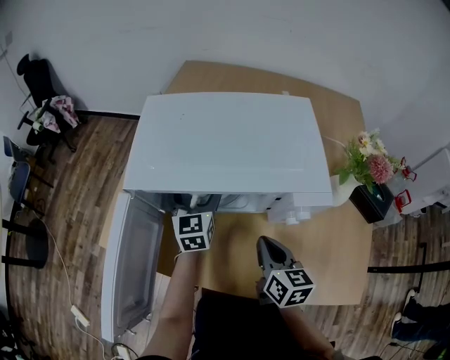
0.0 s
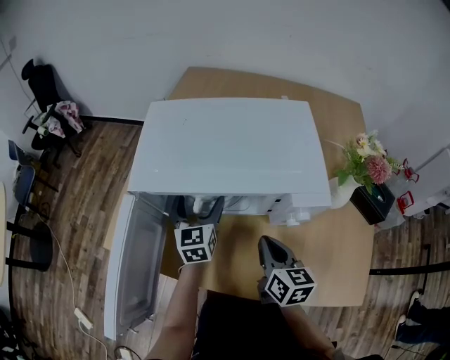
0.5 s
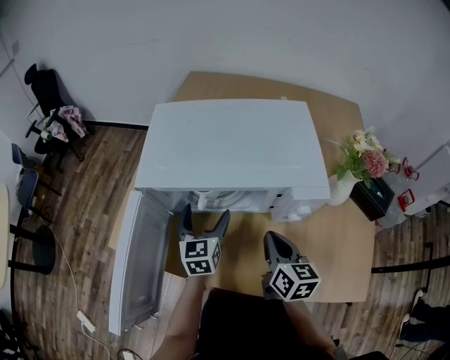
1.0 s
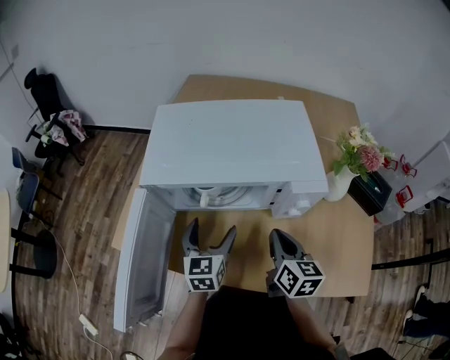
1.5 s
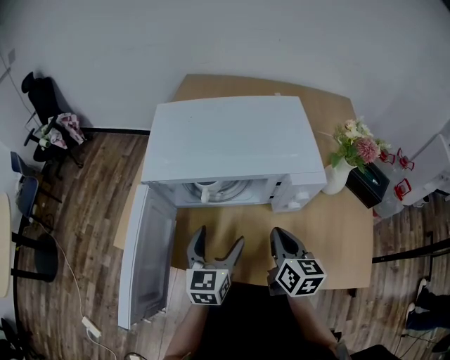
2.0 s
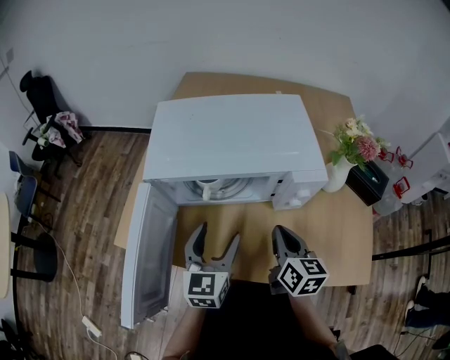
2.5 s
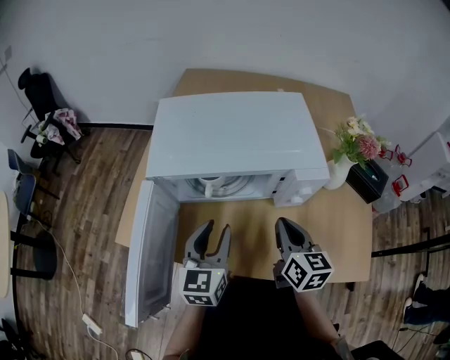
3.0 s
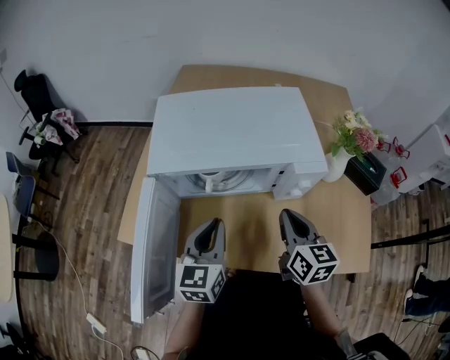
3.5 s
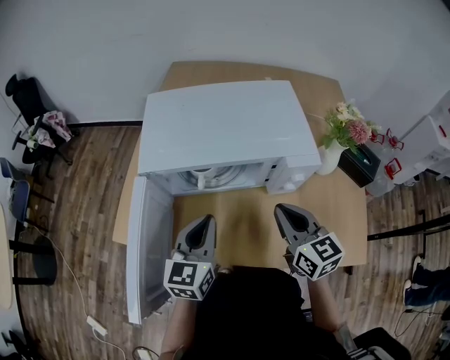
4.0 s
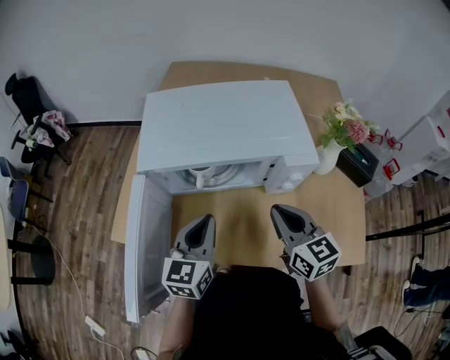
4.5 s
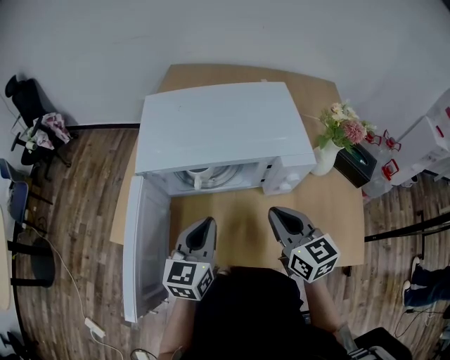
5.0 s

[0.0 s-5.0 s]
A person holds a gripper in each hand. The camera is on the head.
0.0 to 2.5 s: The right gripper moves about 5 cm; the left gripper heads backward, covering some 20 cm.
2.5 to 5.0 s: The left gripper closes; the right gripper moves upward, some 5 cm, and changes its angle by approximately 20 degrees.

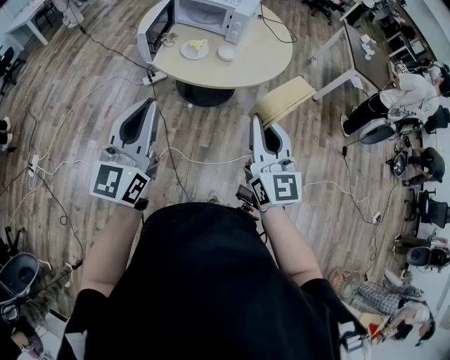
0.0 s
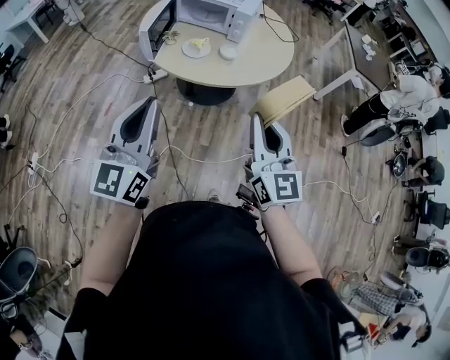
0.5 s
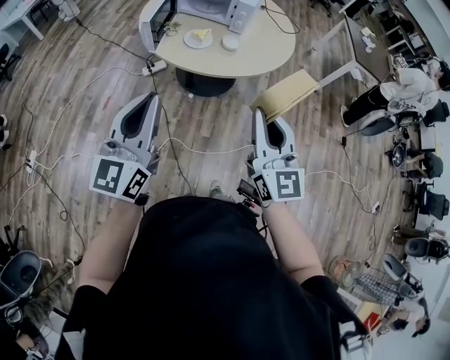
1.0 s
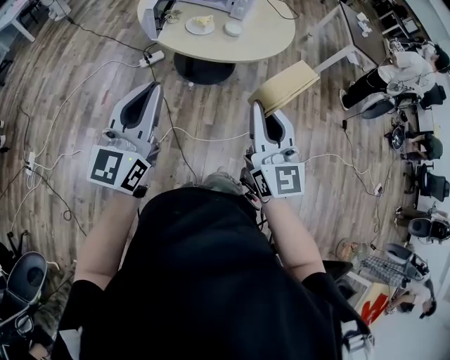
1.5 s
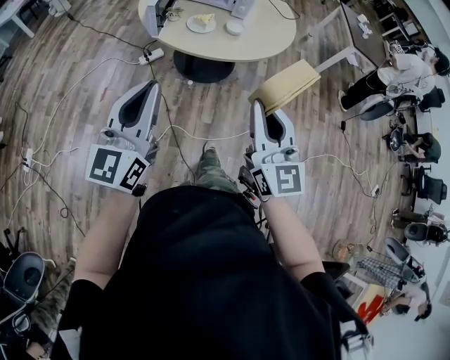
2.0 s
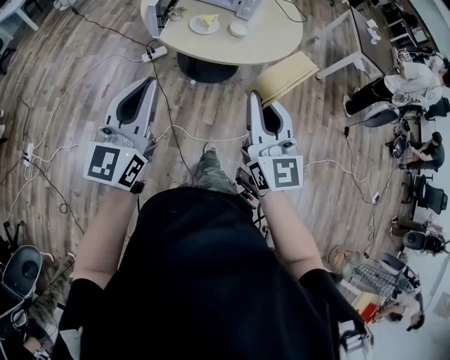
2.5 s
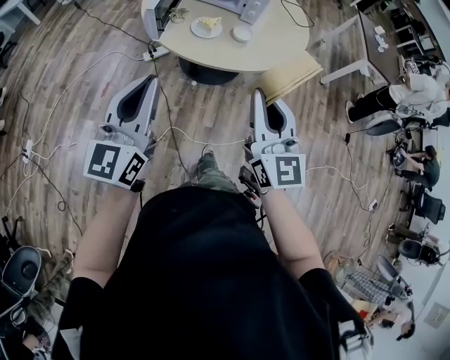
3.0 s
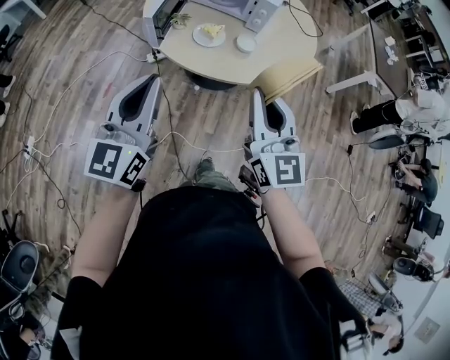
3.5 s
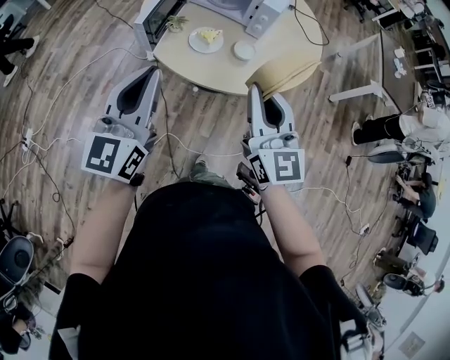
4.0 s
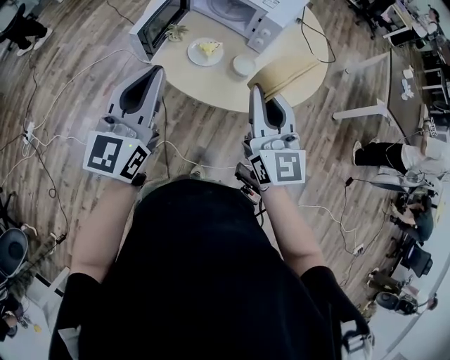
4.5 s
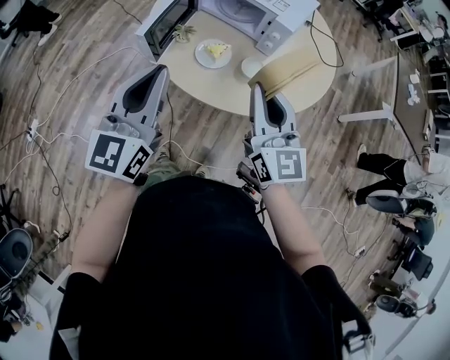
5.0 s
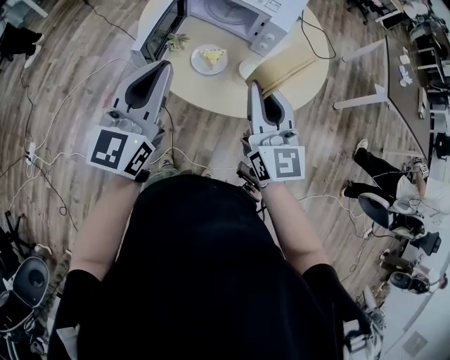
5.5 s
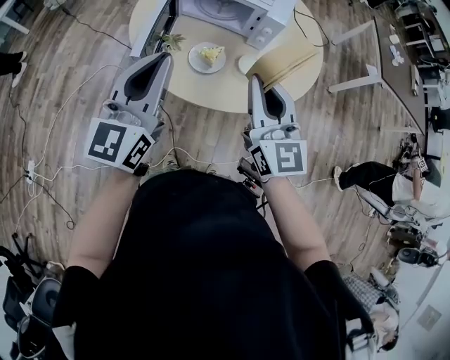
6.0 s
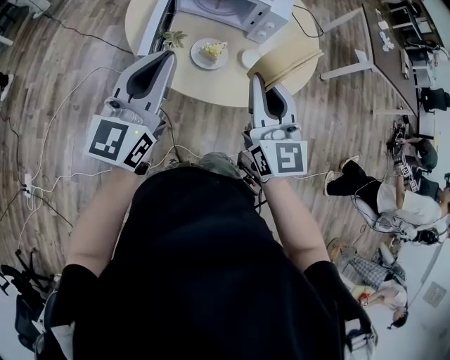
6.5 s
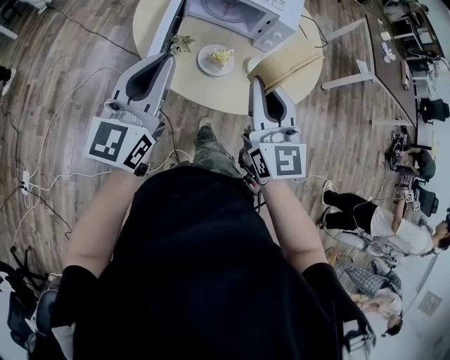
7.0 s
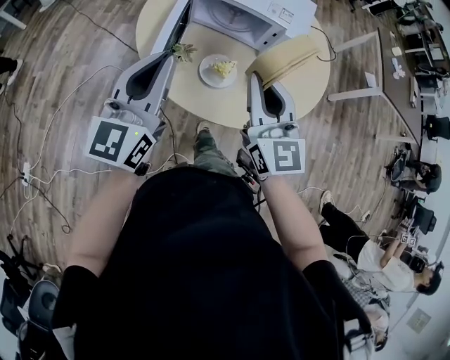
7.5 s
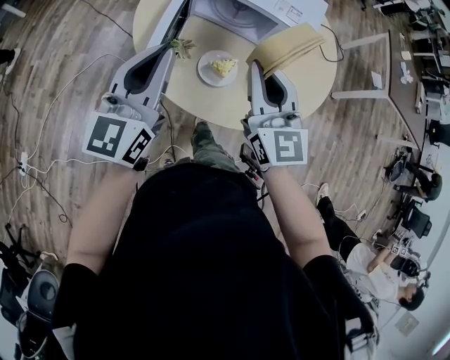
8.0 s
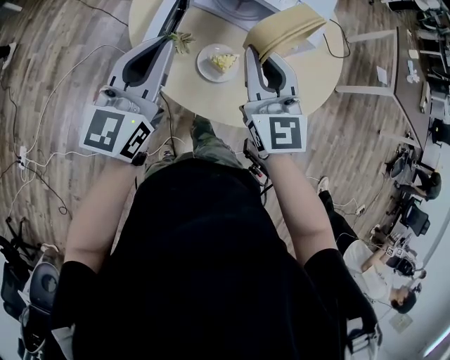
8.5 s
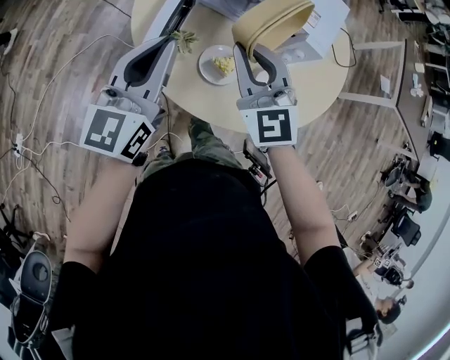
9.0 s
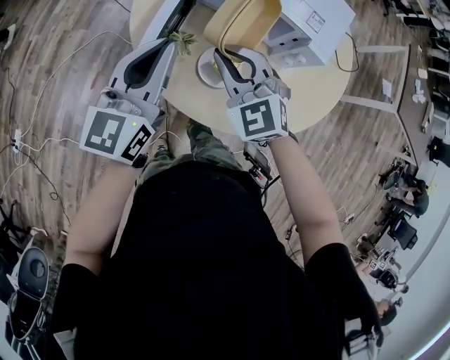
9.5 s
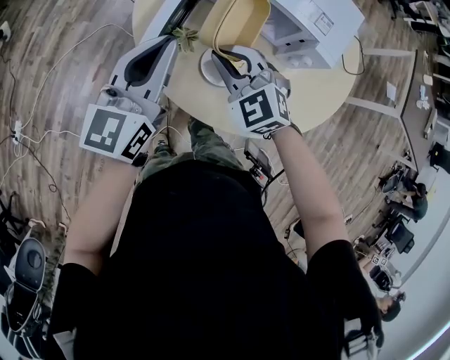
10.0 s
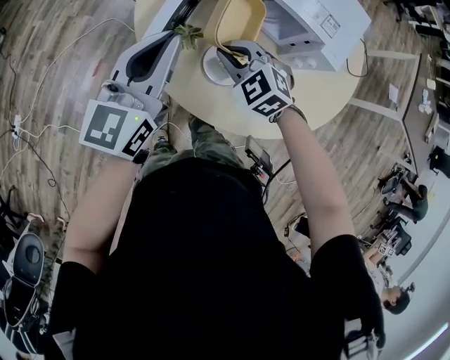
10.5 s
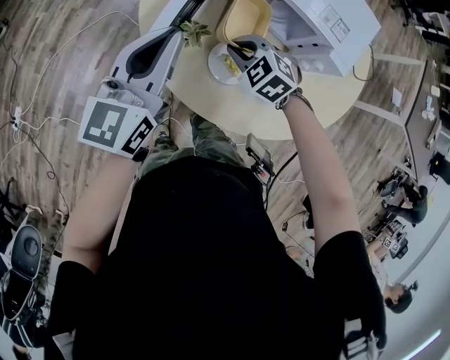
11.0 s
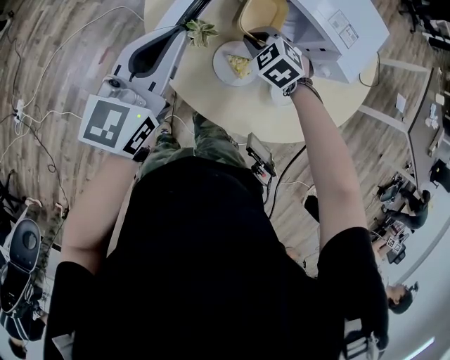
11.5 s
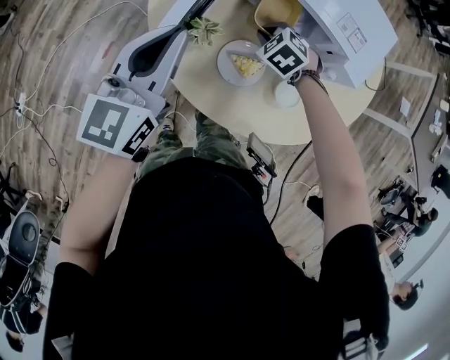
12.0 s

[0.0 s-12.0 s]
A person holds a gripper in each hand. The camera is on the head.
0.0 to 2.0 s: The right gripper shifts roughly 10 cm to the left and backward; the left gripper moves to the left, about 5 cm.
2.0 to 4.0 s: Both grippers move forward, roughly 25 cm.
4.0 to 6.0 s: The left gripper heads forward, covering approximately 15 cm, while the right gripper heads forward and to the left, covering roughly 15 cm.
6.0 to 8.0 s: The grippers both shift forward and to the left by about 15 cm.
8.0 to 10.0 s: The left gripper moves forward and downward, about 10 cm. Meanwhile the right gripper goes approximately 20 cm downward, forward and to the left, and turns by roughly 50 degrees.
10.0 to 12.0 s: The right gripper goes about 20 cm downward, forward and to the right, and angles its fingers downward, by approximately 40 degrees.

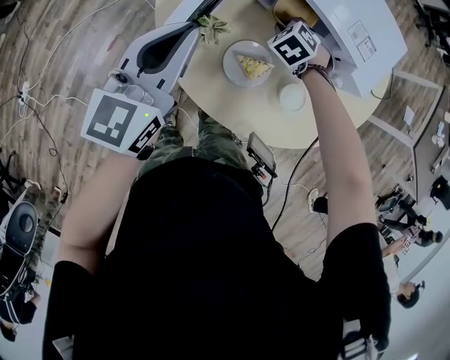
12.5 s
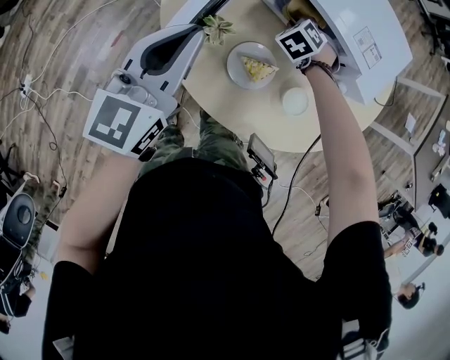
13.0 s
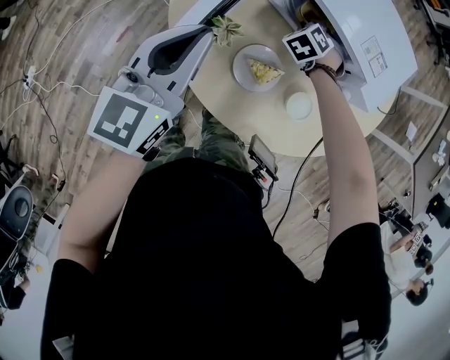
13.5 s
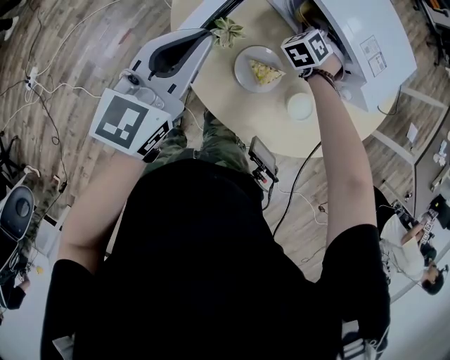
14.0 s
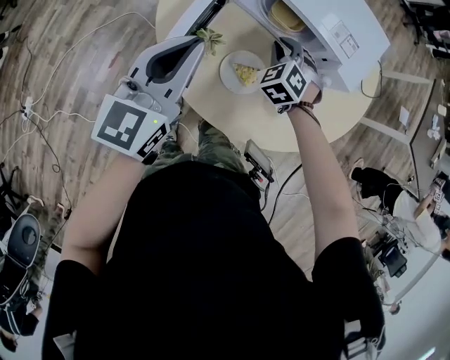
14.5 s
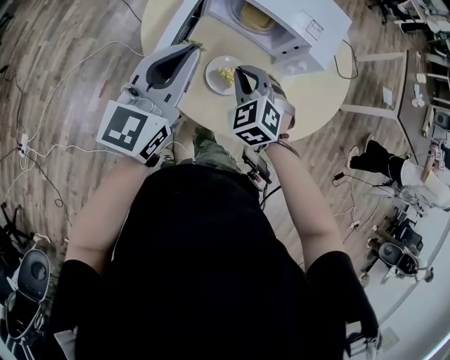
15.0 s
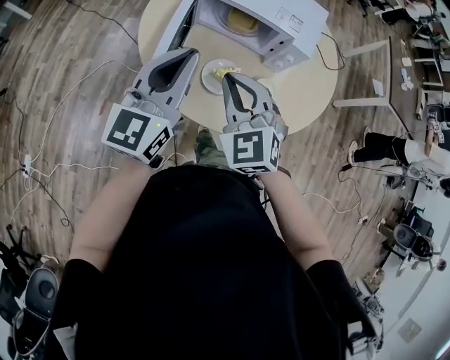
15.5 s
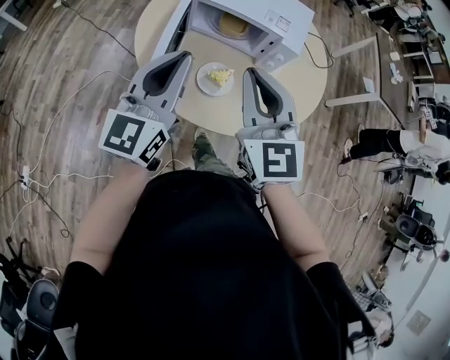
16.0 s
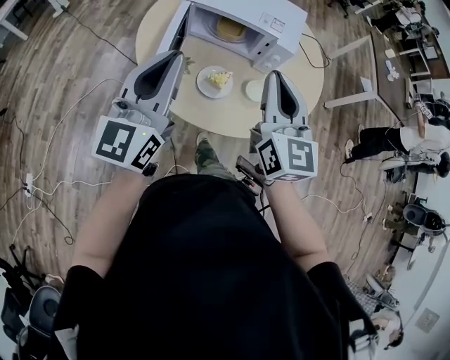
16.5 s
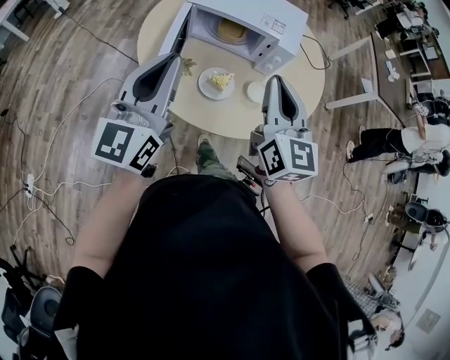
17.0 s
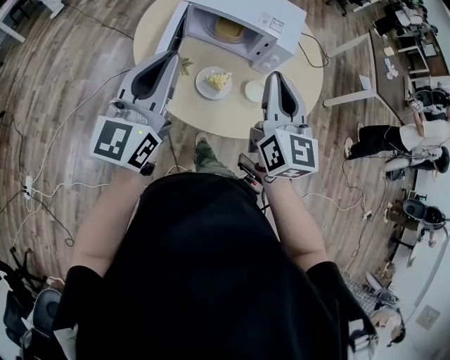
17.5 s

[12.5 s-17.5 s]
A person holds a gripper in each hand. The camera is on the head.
12.5 to 15.0 s: The right gripper heads backward and upward, covering about 25 cm, and rotates about 20 degrees; the left gripper shifts roughly 5 cm upward.
15.0 to 17.5 s: The left gripper heads backward and upward, covering about 10 cm. Meanwhile the right gripper travels upward by about 20 cm, and points its fingers about 40 degrees further upward.

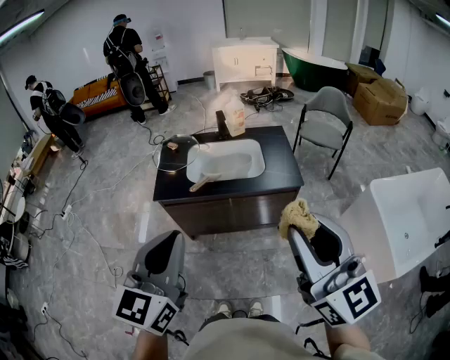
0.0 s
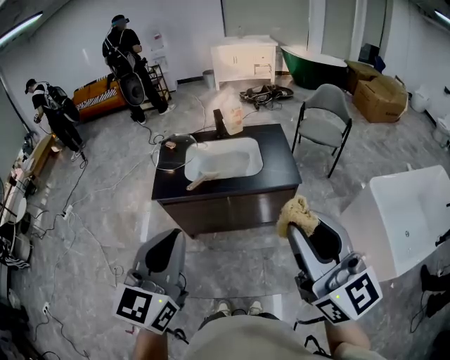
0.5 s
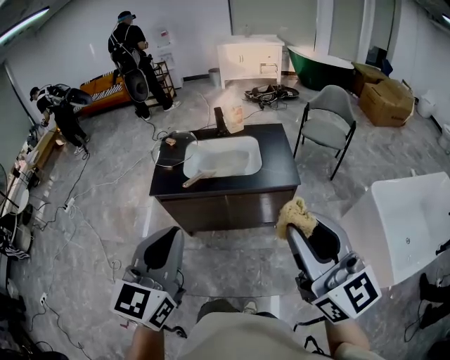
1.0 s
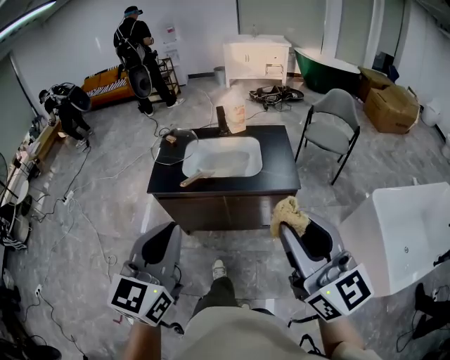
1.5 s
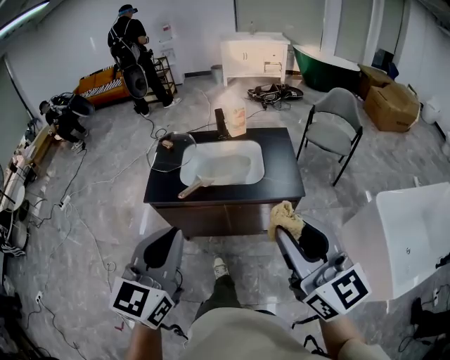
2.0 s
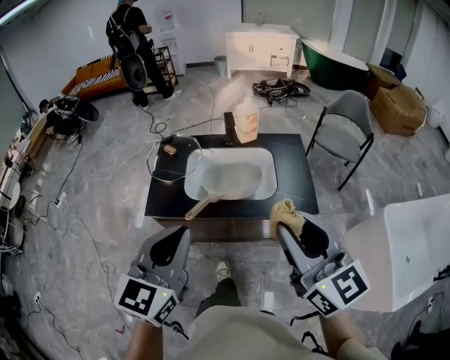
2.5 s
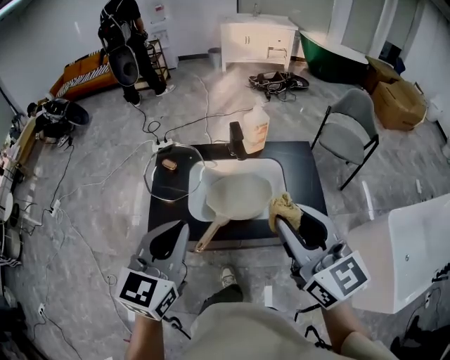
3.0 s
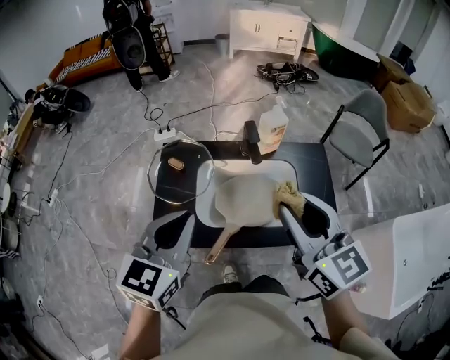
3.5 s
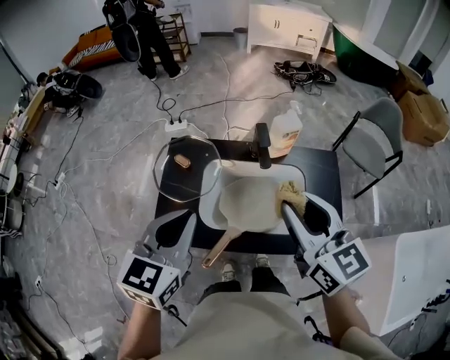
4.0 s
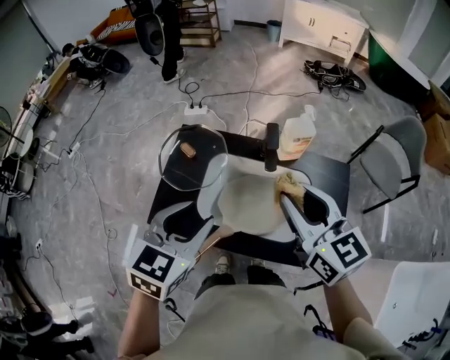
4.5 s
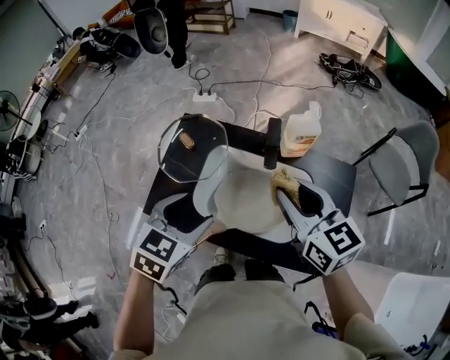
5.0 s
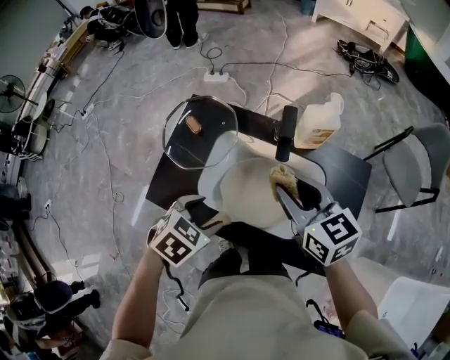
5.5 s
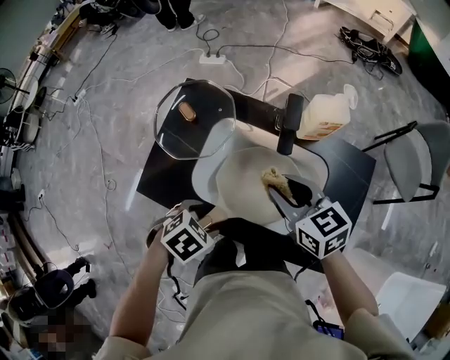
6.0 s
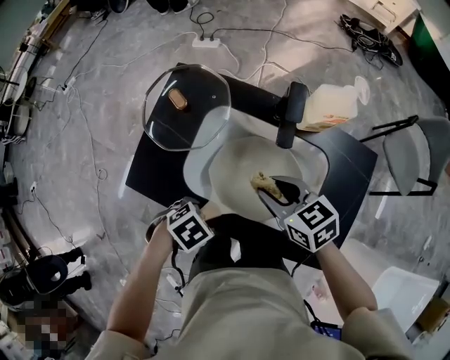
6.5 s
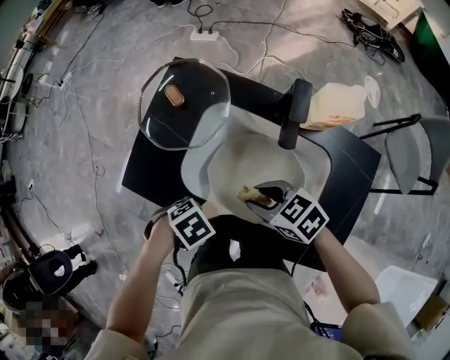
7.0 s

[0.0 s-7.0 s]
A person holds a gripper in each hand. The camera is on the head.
0.0 to 2.0 s: The right gripper is displaced forward and downward by about 10 cm, while the left gripper moves forward and to the right, roughly 10 cm.
2.0 to 3.5 s: Both grippers move forward, some 35 cm.
3.5 to 5.0 s: The left gripper travels downward and to the right by about 15 cm, turns by about 30 degrees, and opens its fingers; the right gripper travels forward, downward and to the right by some 15 cm, and turns by roughly 30 degrees.
5.0 to 7.0 s: Both grippers move downward, approximately 25 cm. The left gripper swivels approximately 50 degrees. Meanwhile the right gripper rotates roughly 50 degrees.
